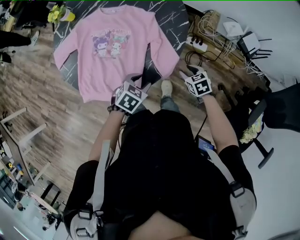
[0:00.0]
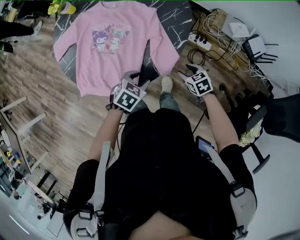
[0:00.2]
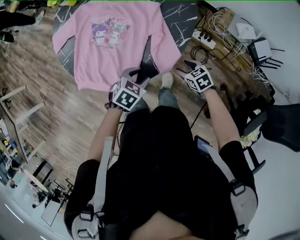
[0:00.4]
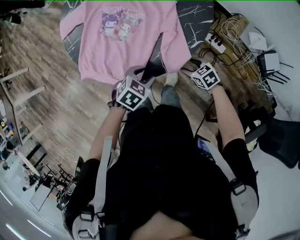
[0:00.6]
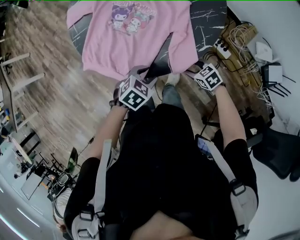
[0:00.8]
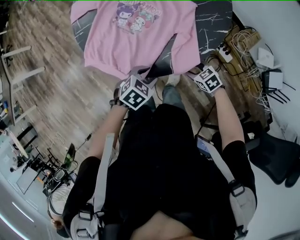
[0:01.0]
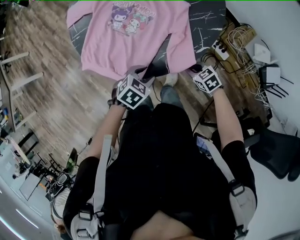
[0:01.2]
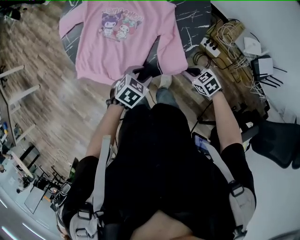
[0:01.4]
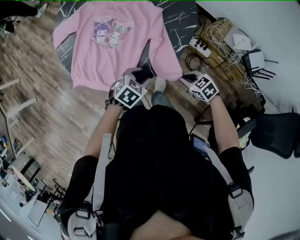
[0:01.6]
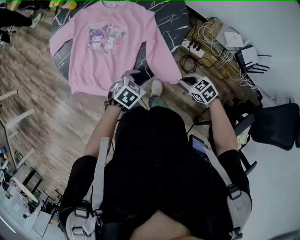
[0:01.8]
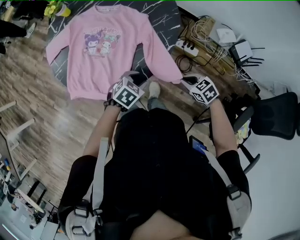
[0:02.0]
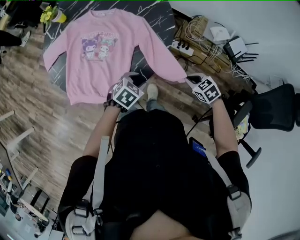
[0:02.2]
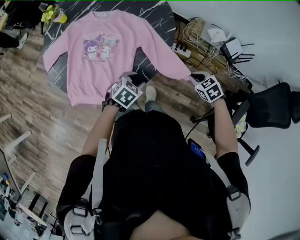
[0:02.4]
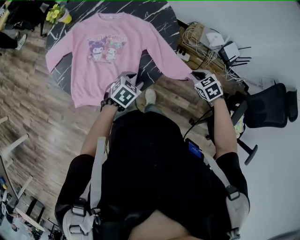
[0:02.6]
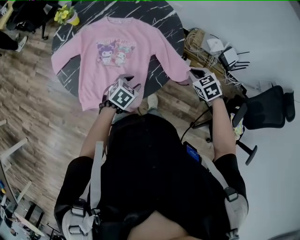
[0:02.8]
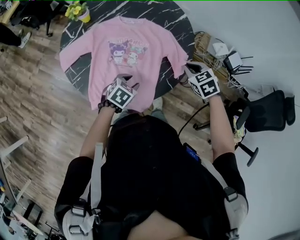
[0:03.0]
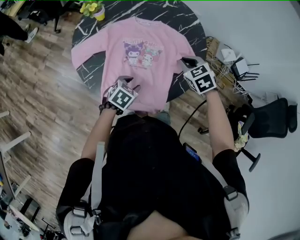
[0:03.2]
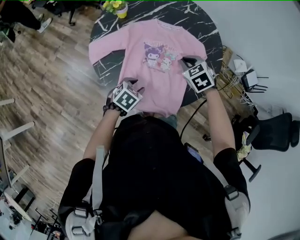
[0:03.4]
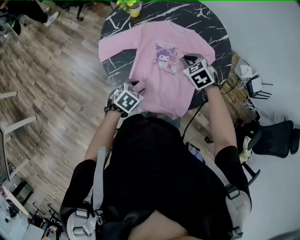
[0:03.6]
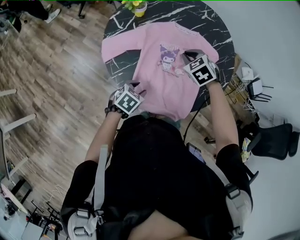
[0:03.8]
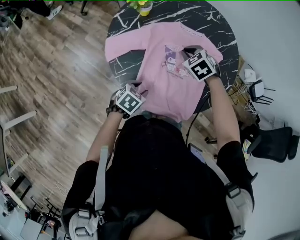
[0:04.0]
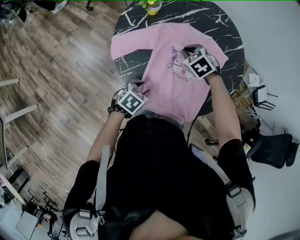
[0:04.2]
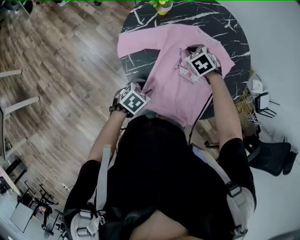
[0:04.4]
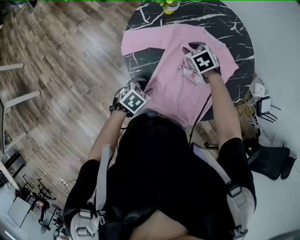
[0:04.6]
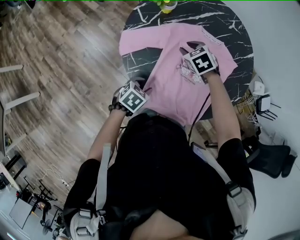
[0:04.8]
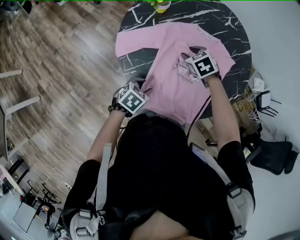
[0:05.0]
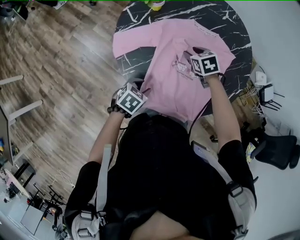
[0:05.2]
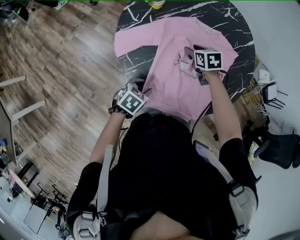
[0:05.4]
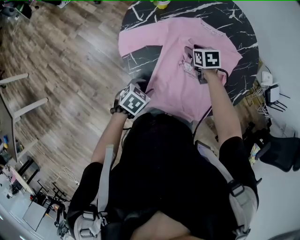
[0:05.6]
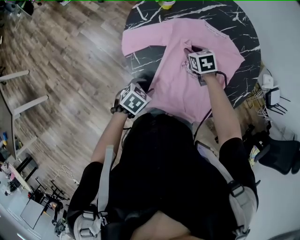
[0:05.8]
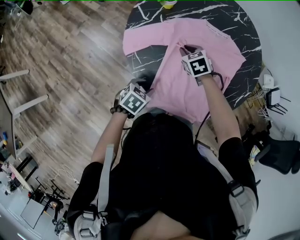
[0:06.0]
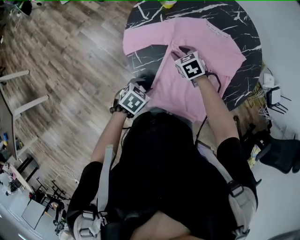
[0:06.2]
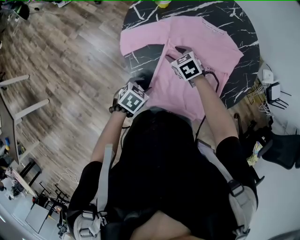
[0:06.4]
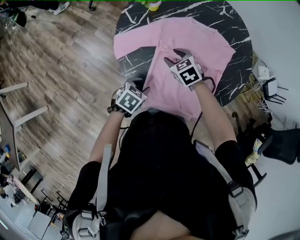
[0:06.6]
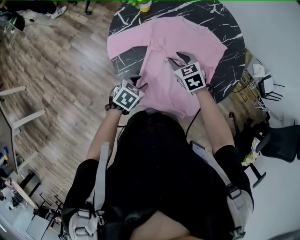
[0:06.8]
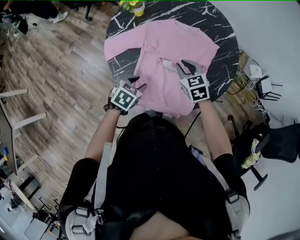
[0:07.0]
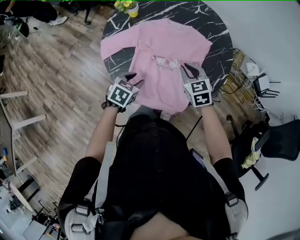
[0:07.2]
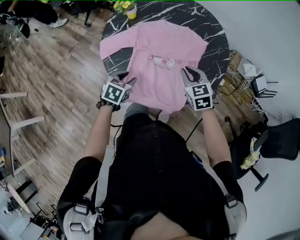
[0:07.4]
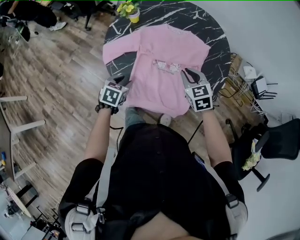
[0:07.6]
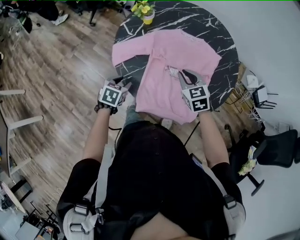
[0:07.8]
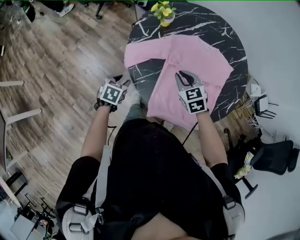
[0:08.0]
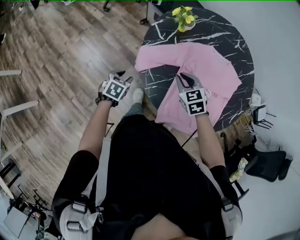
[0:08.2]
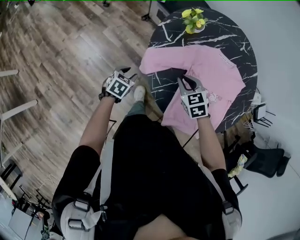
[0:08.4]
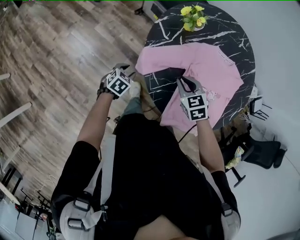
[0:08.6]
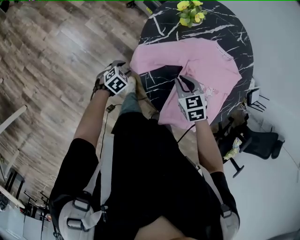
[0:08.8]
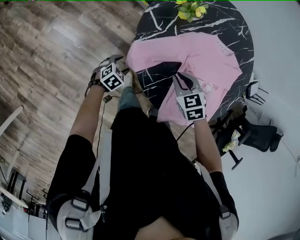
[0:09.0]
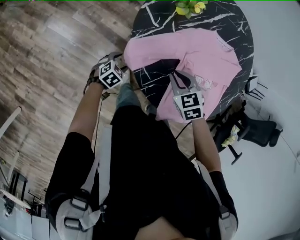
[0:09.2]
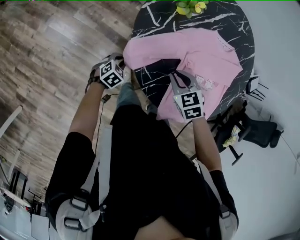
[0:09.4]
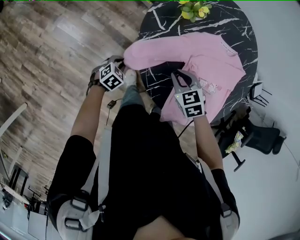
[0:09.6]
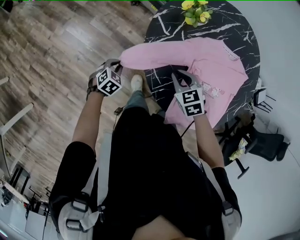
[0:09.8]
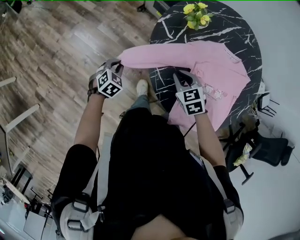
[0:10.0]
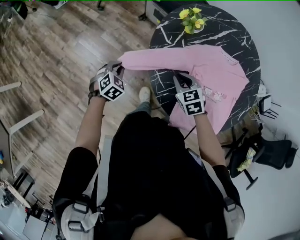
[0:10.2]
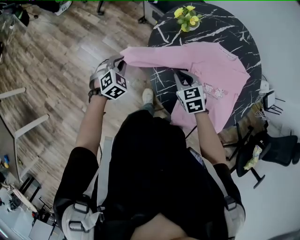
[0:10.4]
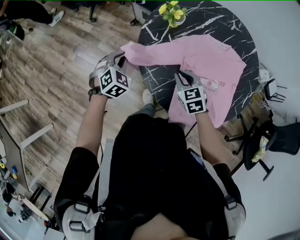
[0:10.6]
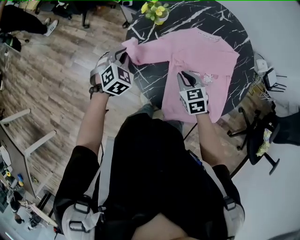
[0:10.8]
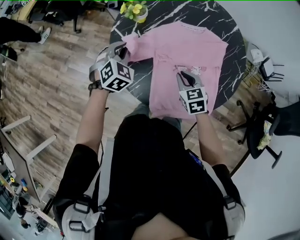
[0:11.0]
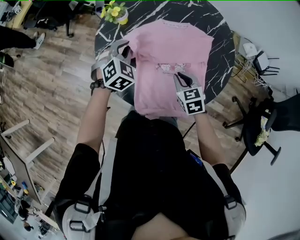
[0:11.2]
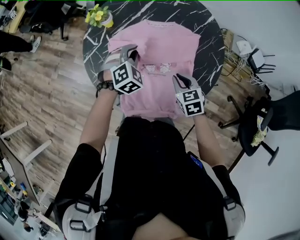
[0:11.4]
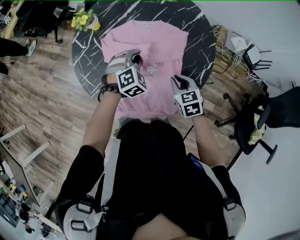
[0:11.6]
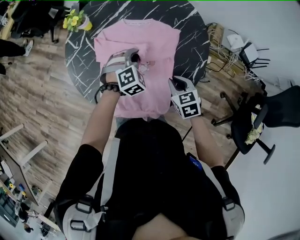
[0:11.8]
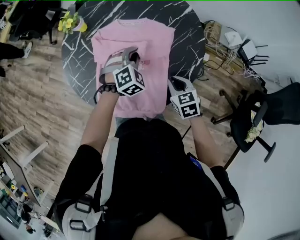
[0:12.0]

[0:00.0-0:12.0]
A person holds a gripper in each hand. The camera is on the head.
0.0 to 1.6 s: The right gripper turns by approximately 30 degrees, and closes up.
1.6 to 3.0 s: The left gripper moves some 15 cm; the right gripper is displaced upward by roughly 15 cm, and changes its angle by some 40 degrees.
3.0 to 4.4 s: The left gripper is displaced to the left by roughly 25 cm; the right gripper shifts approximately 35 cm to the left, and rotates approximately 20 degrees.
4.4 to 6.0 s: The right gripper moves about 5 cm.
6.0 to 7.6 s: The left gripper travels upward by some 5 cm, and moves roughly 10 cm to the right and comes back, while the right gripper is displaced to the right, upward and backward by about 25 cm, swivels some 20 degrees, and opens, then closes once more.
7.6 to 9.0 s: The left gripper moves downward, to the left and forward, roughly 30 cm, and rotates about 30 degrees; the right gripper travels to the left by roughly 30 cm, and swivels about 20 degrees.
9.0 to 10.4 s: The left gripper moves upward, roughly 20 cm, swivels approximately 30 degrees, and closes its fingers.
10.4 to 12.0 s: The two grippers travel together, to the right, roughly 50 cm. The left gripper rotates some 20 degrees.

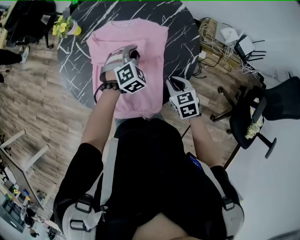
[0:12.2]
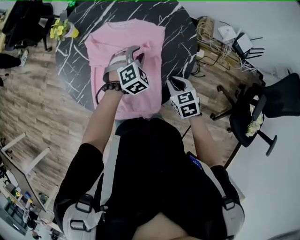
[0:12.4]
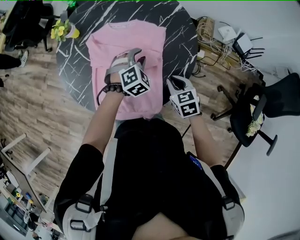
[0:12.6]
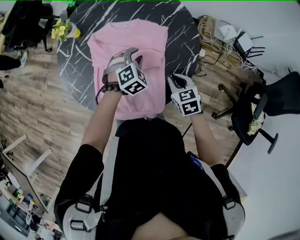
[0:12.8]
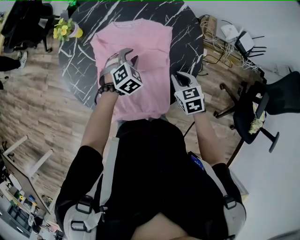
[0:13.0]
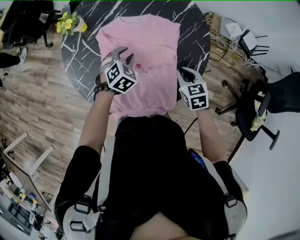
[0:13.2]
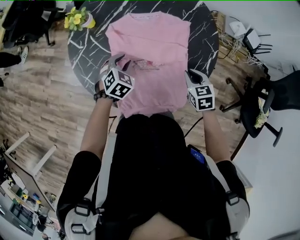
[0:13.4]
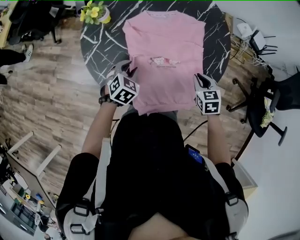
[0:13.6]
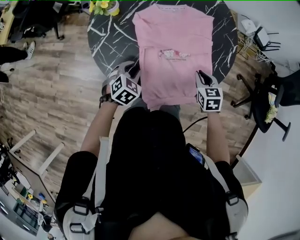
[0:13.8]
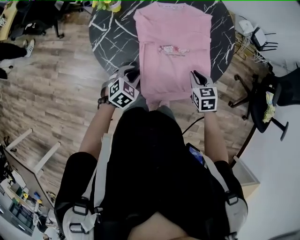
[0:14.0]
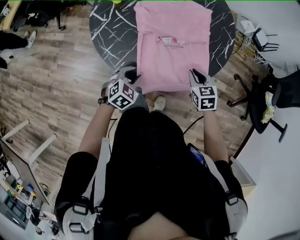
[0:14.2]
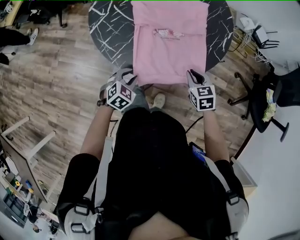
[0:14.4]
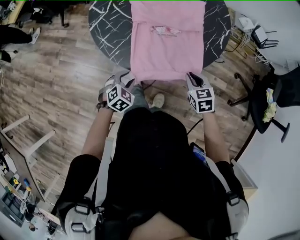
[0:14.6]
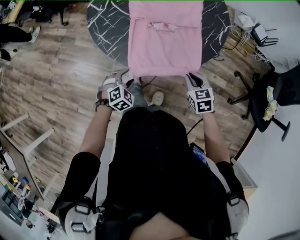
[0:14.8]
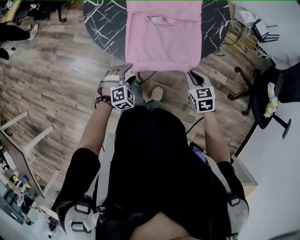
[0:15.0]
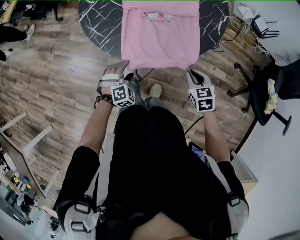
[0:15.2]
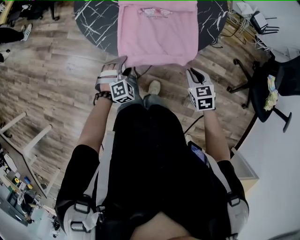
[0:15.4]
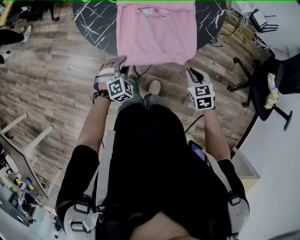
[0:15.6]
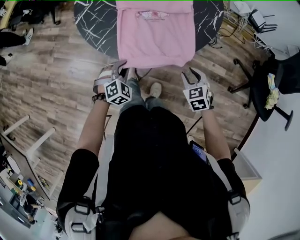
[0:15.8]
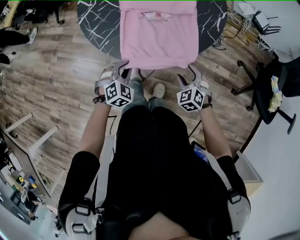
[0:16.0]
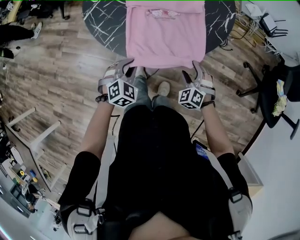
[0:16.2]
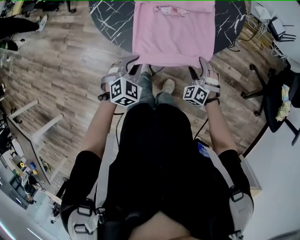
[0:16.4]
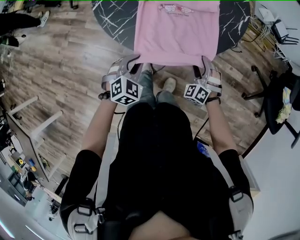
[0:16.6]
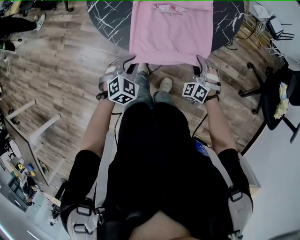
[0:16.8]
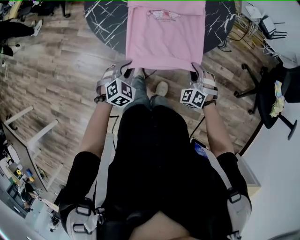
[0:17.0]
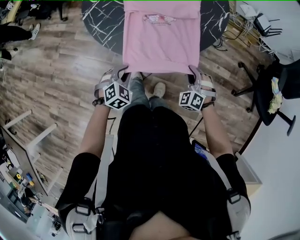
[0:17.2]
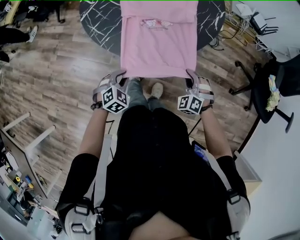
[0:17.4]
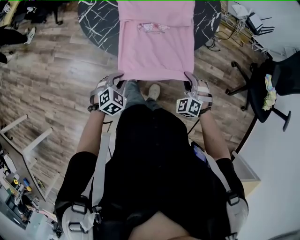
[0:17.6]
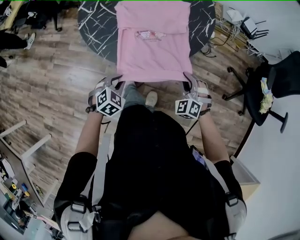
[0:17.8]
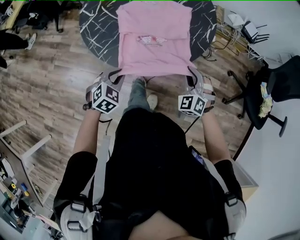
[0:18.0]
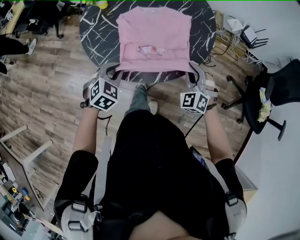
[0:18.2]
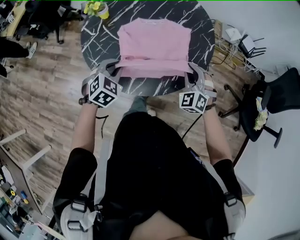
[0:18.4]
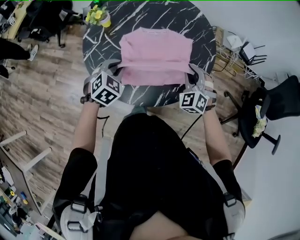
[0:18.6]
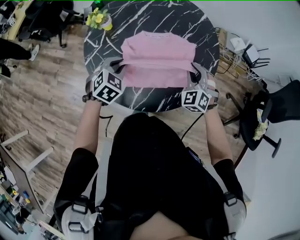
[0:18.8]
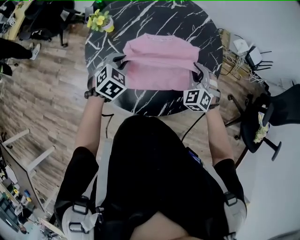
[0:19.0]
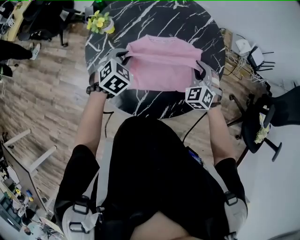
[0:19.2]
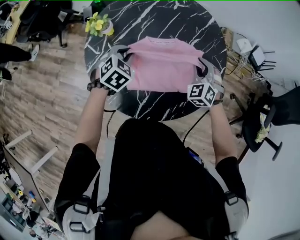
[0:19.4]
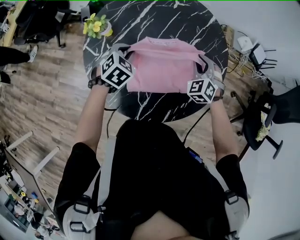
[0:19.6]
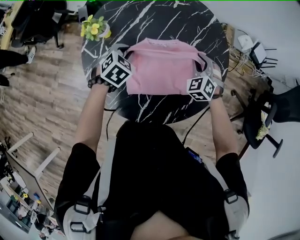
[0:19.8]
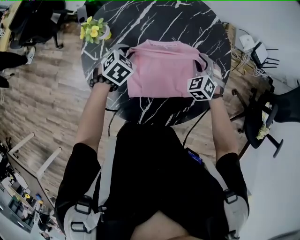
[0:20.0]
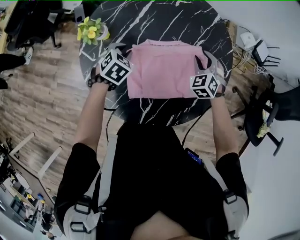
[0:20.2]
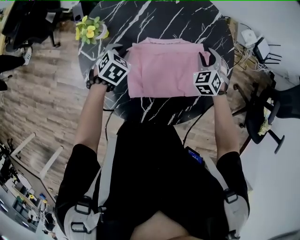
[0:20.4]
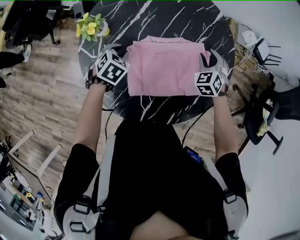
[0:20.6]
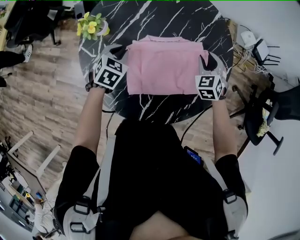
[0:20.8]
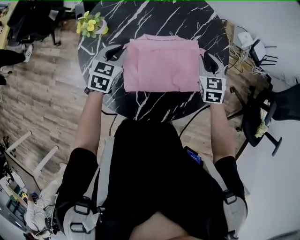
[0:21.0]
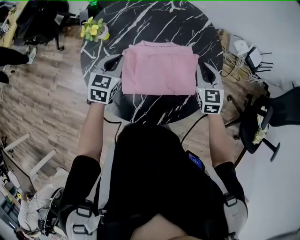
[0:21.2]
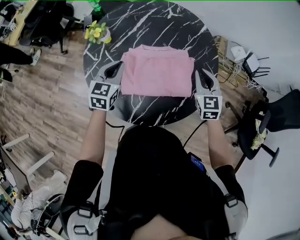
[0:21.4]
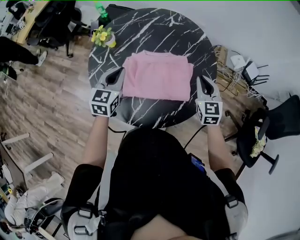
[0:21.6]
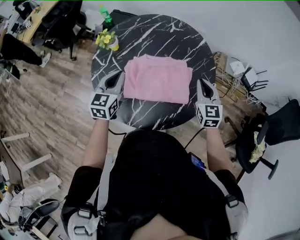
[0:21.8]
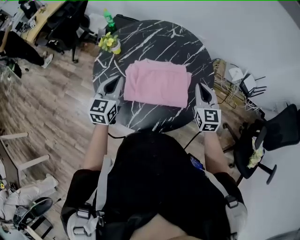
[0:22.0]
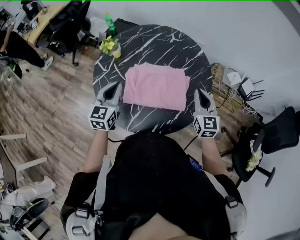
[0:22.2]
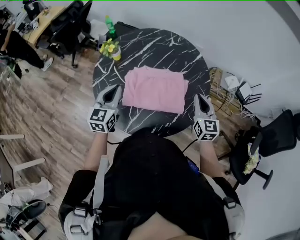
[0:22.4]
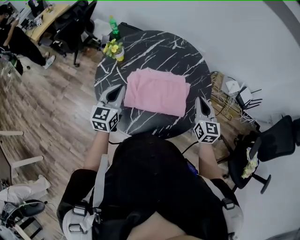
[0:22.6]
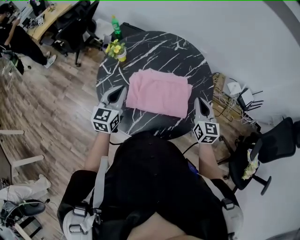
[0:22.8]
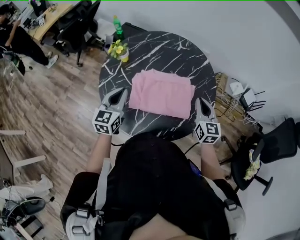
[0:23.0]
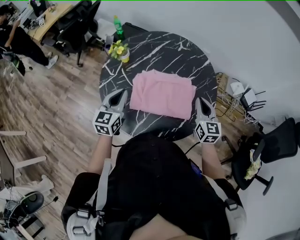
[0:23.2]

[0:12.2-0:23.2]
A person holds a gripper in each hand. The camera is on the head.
12.2 to 13.8 s: The right gripper ends up roughly 10 cm from where it was. Meanwhile the left gripper moves about 30 cm, and turns by roughly 20 degrees.
13.8 to 15.4 s: Both grippers travel together backward, some 20 cm. The left gripper turns by about 30 degrees, and opens its fingers.
15.4 to 17.0 s: The left gripper is displaced upward by some 5 cm, and closes its fingers; the right gripper rolls counterclockwise, seen from behind, by about 50 degrees, and opens and closes again.
17.0 to 18.4 s: Both grippers move forward and upward, some 20 cm.
18.4 to 20.0 s: Both grippers travel together forward, about 25 cm.
20.0 to 21.6 s: The left gripper goes some 20 cm upward and backward, and angles its fingers upward, by some 40 degrees, while the right gripper travels upward, backward and to the right by roughly 15 cm, and swivels roughly 40 degrees.
21.6 to 23.2 s: The left gripper moves backward, roughly 5 cm.

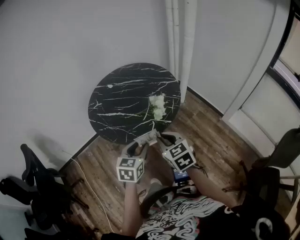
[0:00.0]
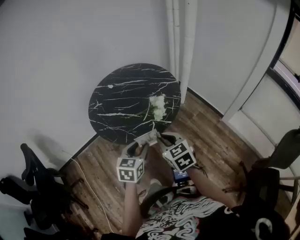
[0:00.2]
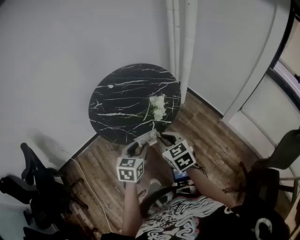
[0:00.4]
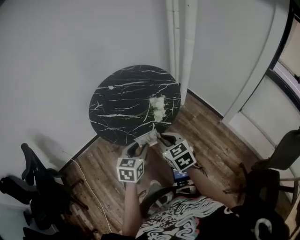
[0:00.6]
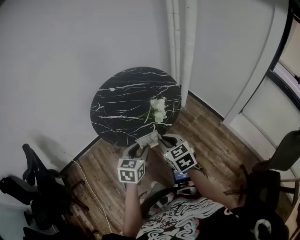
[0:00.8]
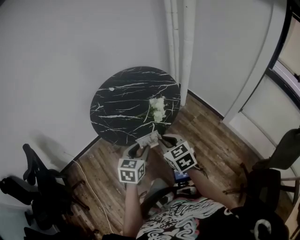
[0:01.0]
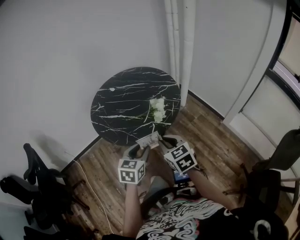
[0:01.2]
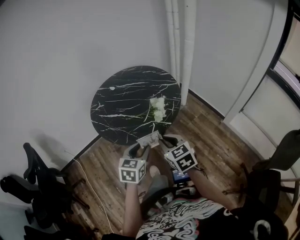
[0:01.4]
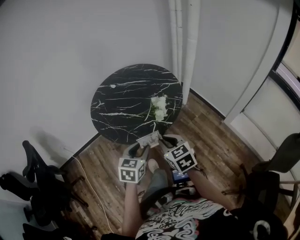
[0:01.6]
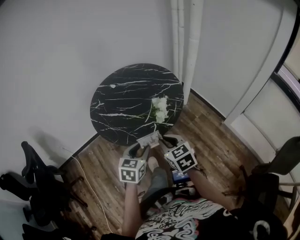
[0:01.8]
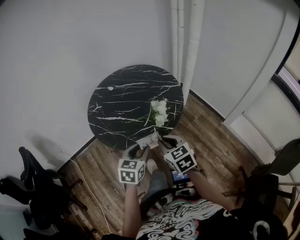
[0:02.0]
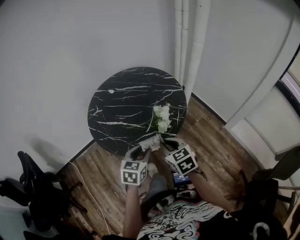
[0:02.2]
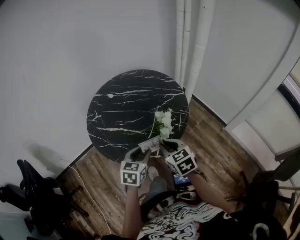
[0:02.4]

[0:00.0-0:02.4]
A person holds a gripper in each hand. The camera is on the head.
0.0 to 1.2 s: The grippers move only a little.
1.2 to 2.4 s: The two grippers go roughly 15 cm forward.
